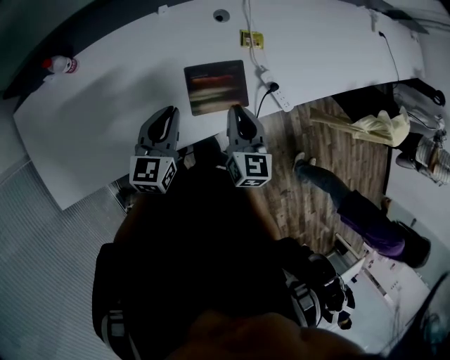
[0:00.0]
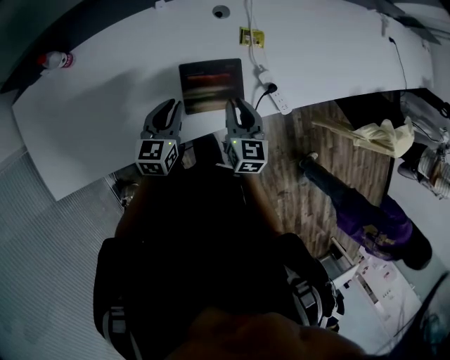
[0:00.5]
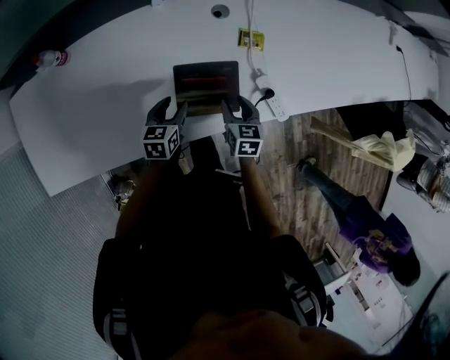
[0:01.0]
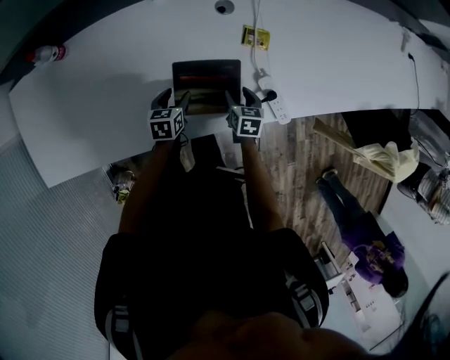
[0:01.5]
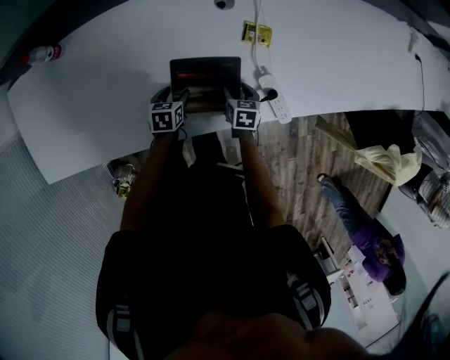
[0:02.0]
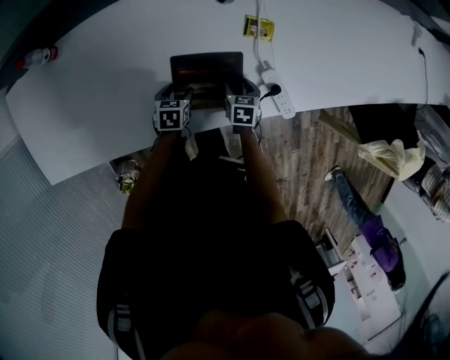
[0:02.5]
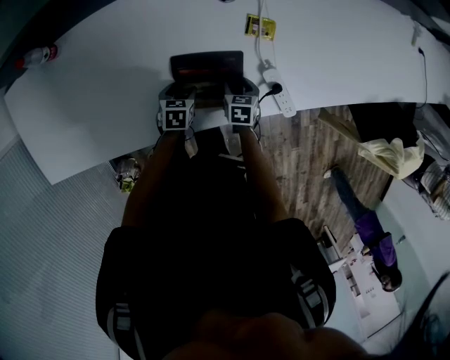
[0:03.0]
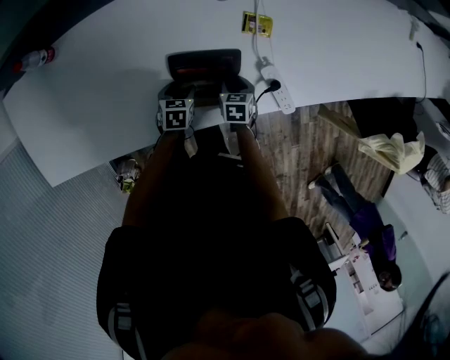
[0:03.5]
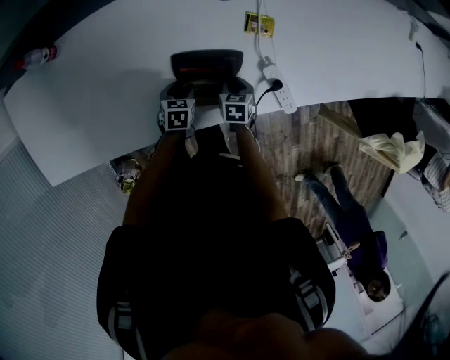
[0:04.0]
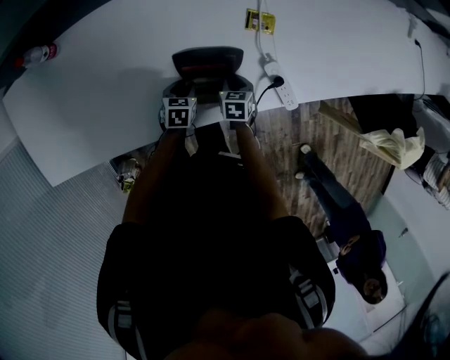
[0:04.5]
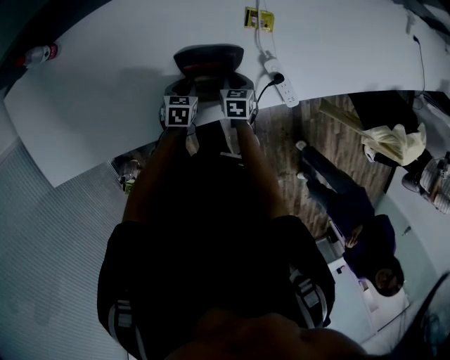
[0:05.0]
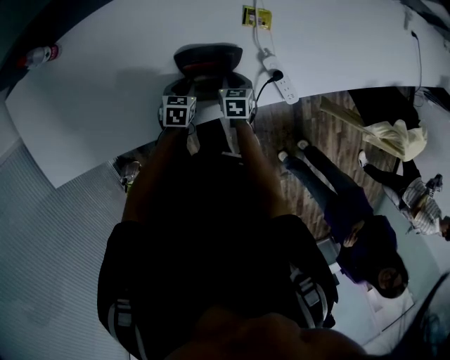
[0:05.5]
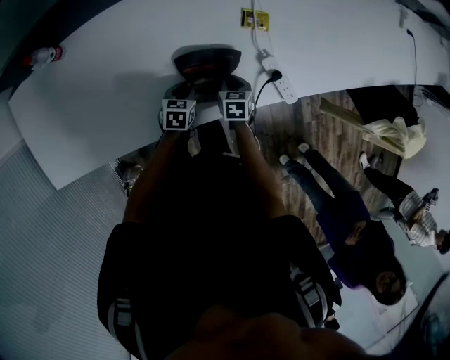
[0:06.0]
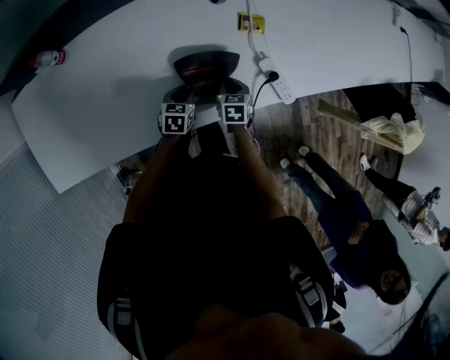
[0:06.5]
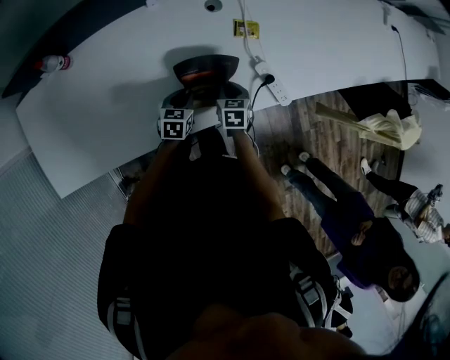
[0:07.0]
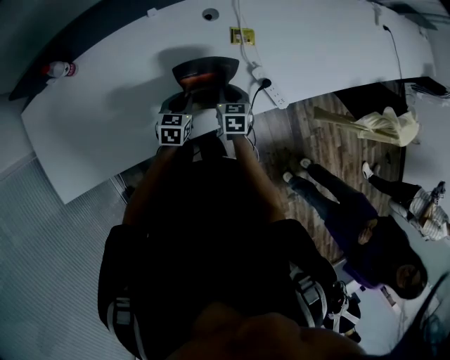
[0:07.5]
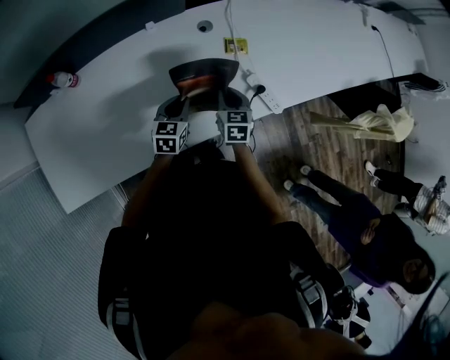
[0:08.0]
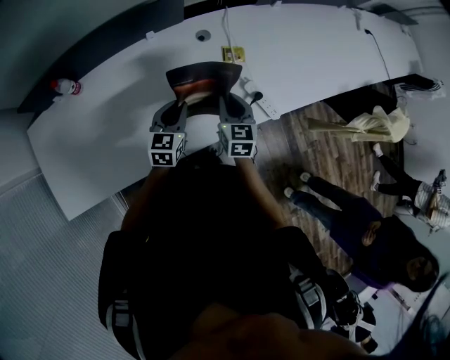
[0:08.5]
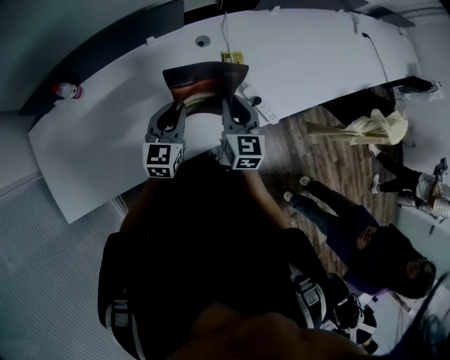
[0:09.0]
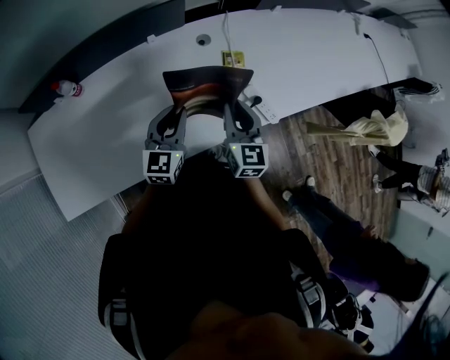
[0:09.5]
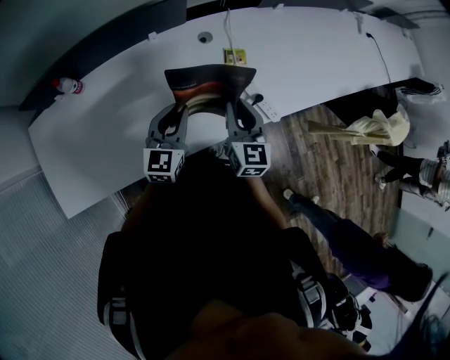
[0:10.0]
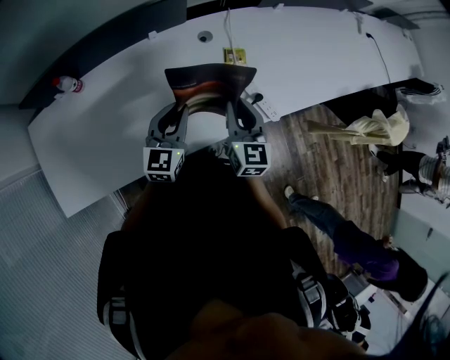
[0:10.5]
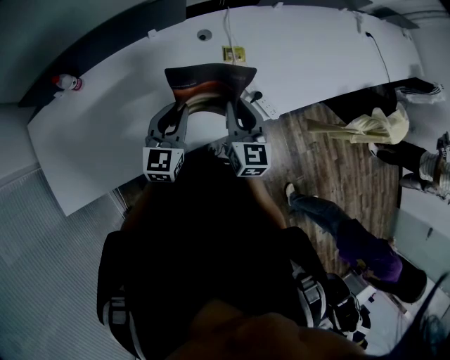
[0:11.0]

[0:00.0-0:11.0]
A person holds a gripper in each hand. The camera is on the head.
0:00.0 to 0:02.0: The two grippers go about 30 cm downward. The left gripper angles its fingers downward, by about 40 degrees, and opens, while the right gripper tips its fingers downward by some 40 degrees, and opens its fingers.
0:02.0 to 0:03.5: The grippers make only small movements.
0:03.5 to 0:05.5: The right gripper closes up. Meanwhile the left gripper closes.
0:05.5 to 0:07.5: The two grippers go approximately 10 cm upward.
0:07.5 to 0:09.0: Both grippers travel together upward, roughly 20 cm. The right gripper rotates approximately 30 degrees. Meanwhile the left gripper changes its angle by approximately 30 degrees.
0:09.0 to 0:11.0: The grippers move only a little.

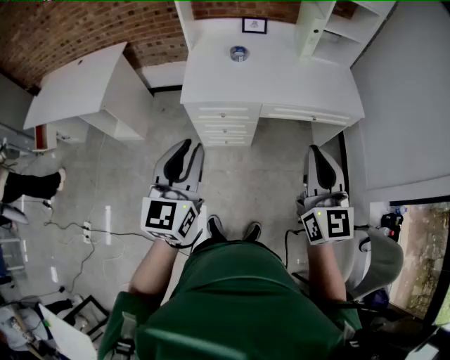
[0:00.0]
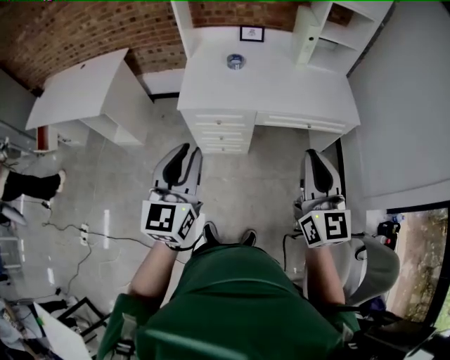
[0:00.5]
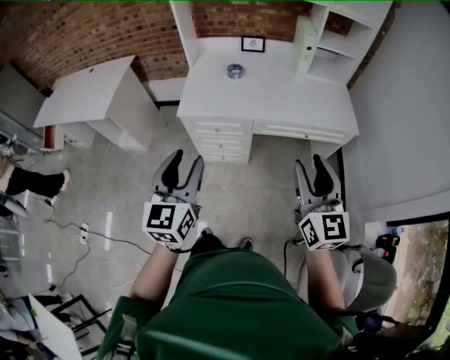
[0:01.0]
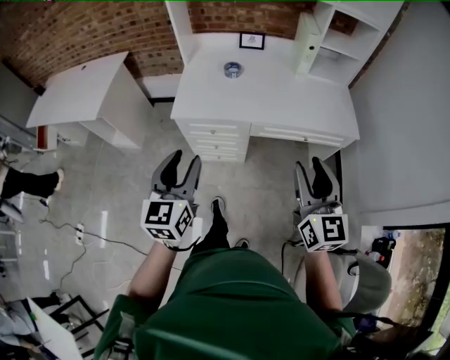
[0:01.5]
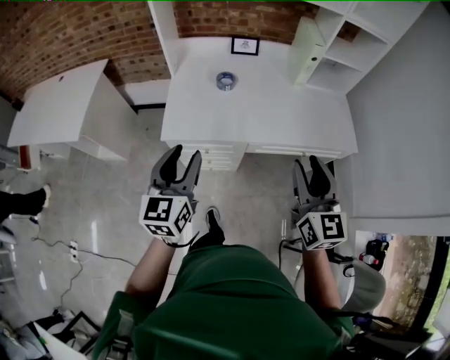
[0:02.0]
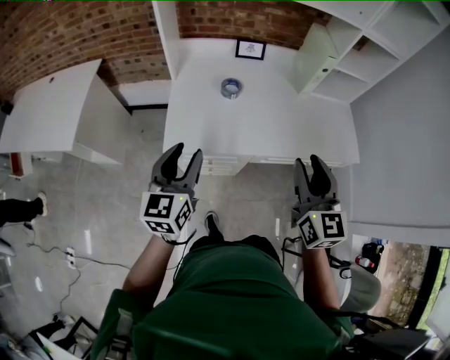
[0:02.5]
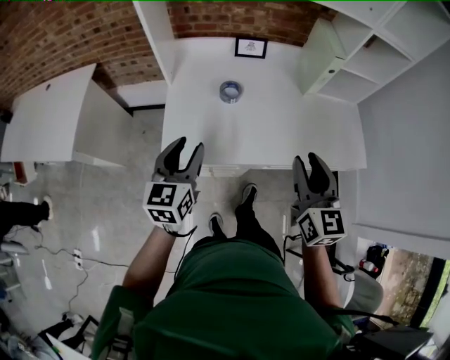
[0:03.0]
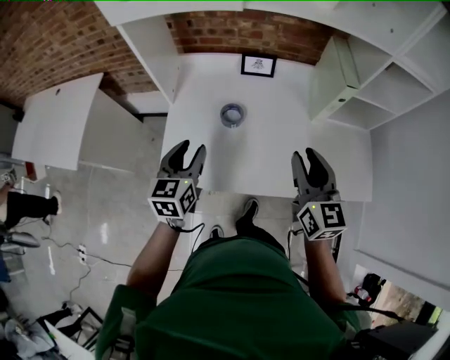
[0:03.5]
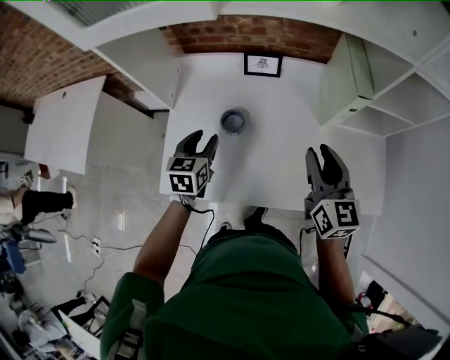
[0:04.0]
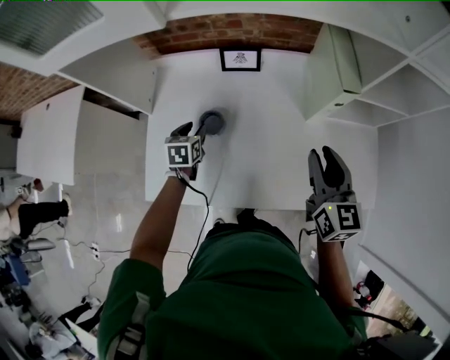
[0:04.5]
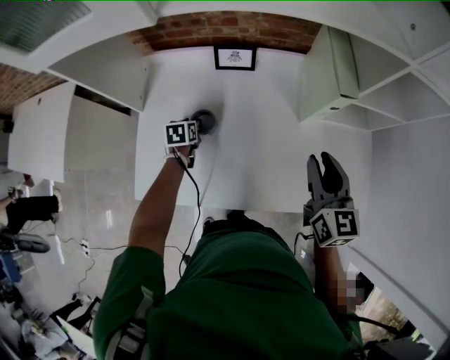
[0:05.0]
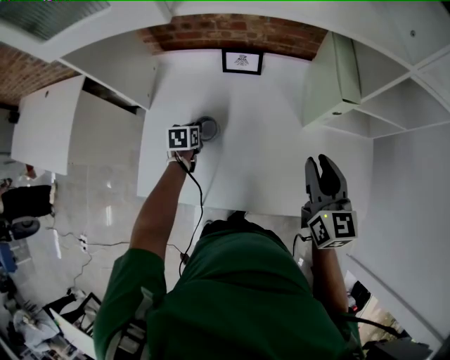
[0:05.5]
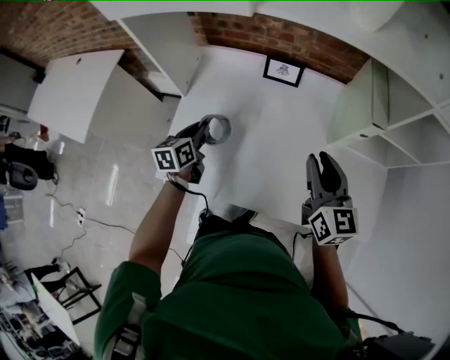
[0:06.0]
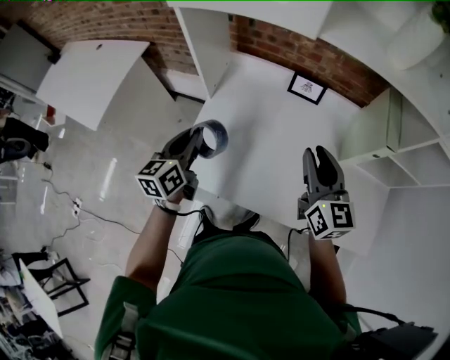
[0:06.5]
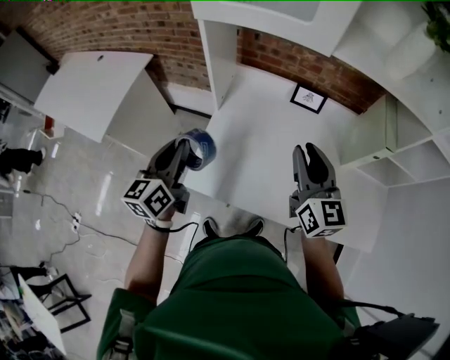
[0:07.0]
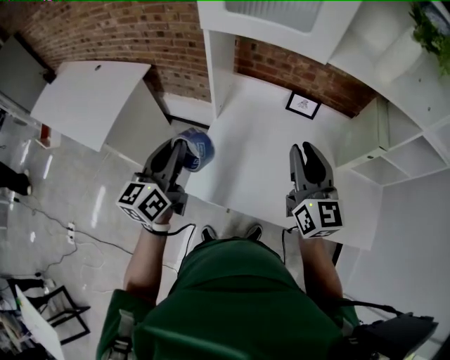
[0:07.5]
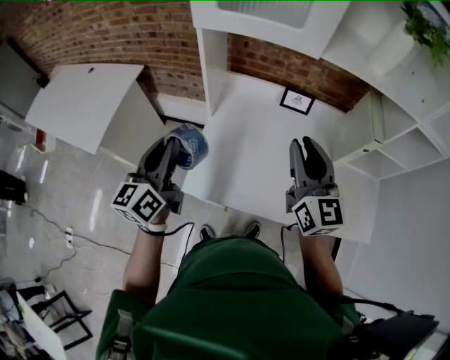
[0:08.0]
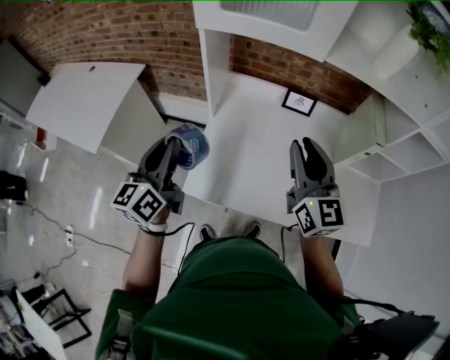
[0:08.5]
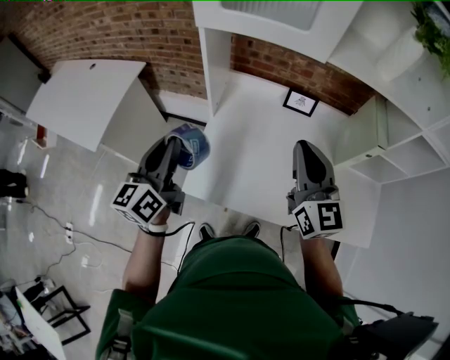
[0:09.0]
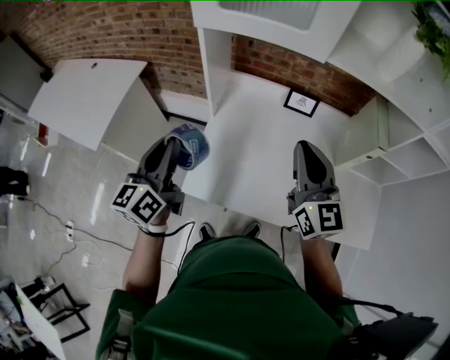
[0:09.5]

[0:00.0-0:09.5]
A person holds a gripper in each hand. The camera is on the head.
0:00.0 to 0:02.0: Both grippers move forward, some 20 cm. The right gripper opens its fingers; the left gripper opens its fingers.
0:02.0 to 0:04.0: The two grippers travel together, forward, some 40 cm. The left gripper shifts approximately 20 cm downward, and rotates some 30 degrees.
0:04.0 to 0:05.5: The left gripper shifts roughly 20 cm downward and forward, changes its angle by approximately 30 degrees, and closes. Meanwhile the right gripper heads to the right, covering approximately 5 cm.
0:05.5 to 0:07.5: The left gripper goes roughly 50 cm upward, to the left and backward, and points its fingers some 60 degrees further upward. The right gripper is displaced to the left and upward by roughly 35 cm, and swivels roughly 20 degrees.
0:07.5 to 0:09.5: There are only small adjustments of the grippers.

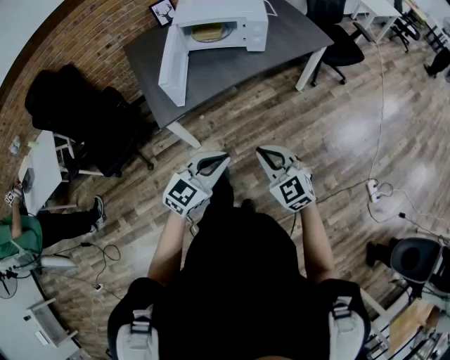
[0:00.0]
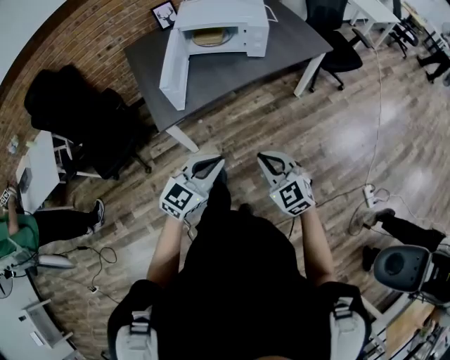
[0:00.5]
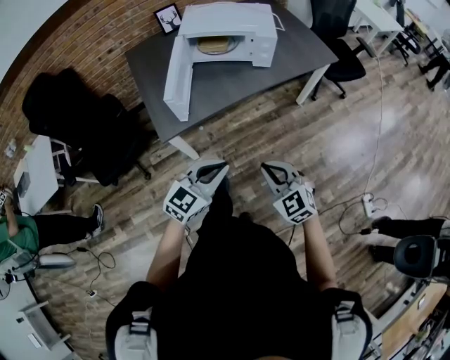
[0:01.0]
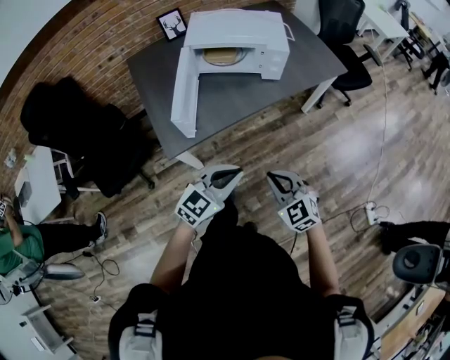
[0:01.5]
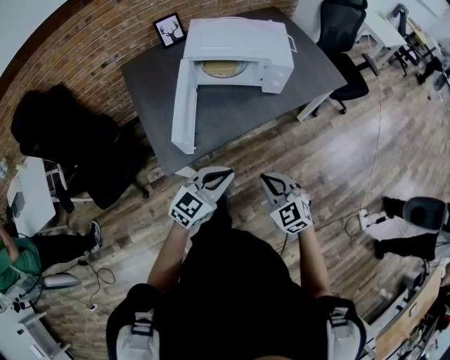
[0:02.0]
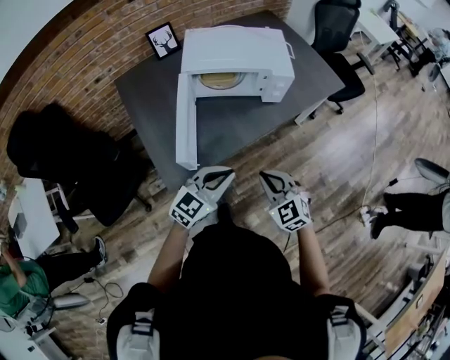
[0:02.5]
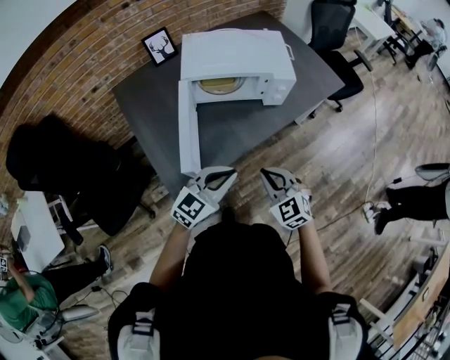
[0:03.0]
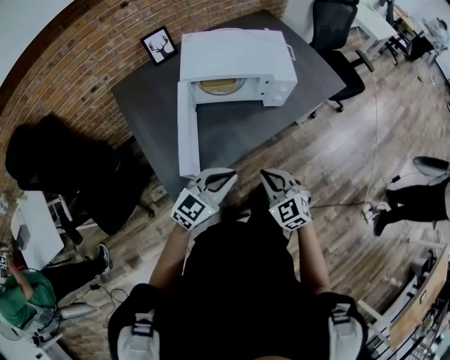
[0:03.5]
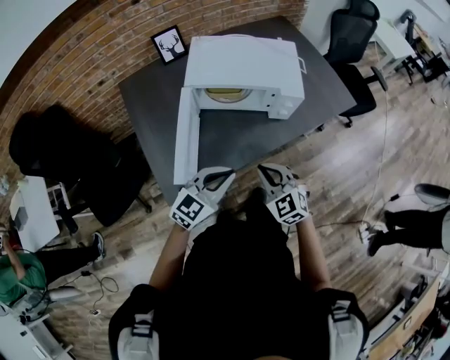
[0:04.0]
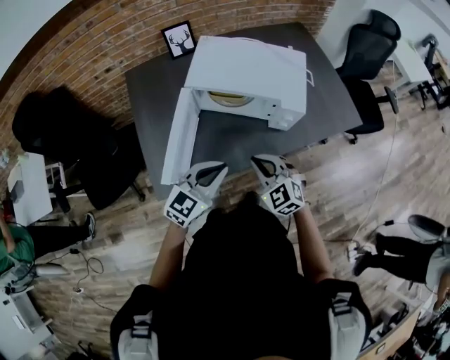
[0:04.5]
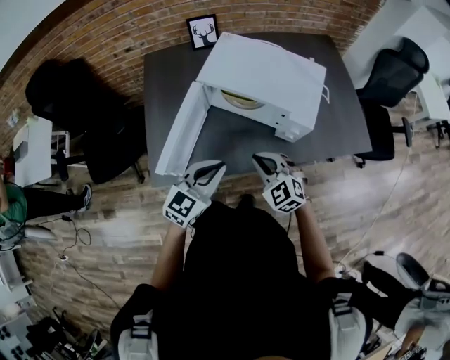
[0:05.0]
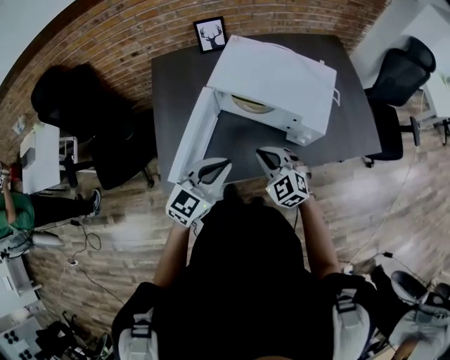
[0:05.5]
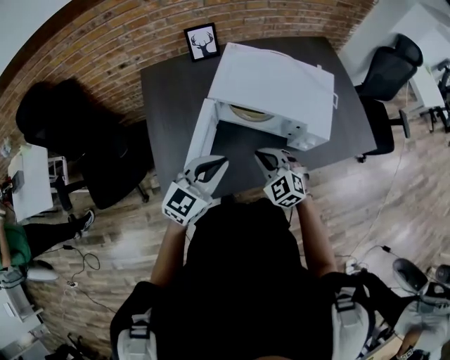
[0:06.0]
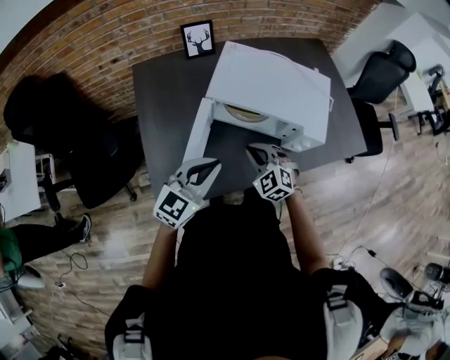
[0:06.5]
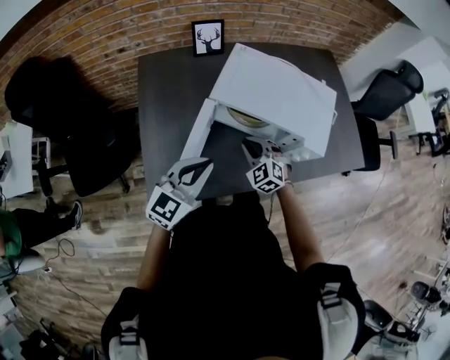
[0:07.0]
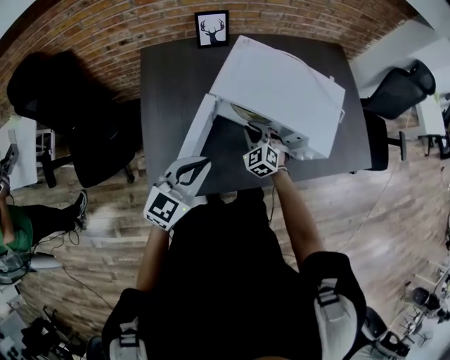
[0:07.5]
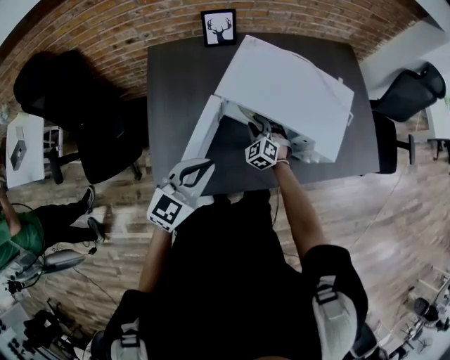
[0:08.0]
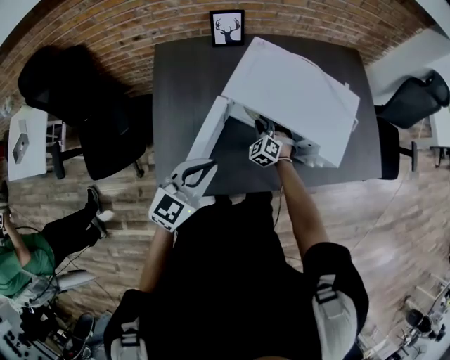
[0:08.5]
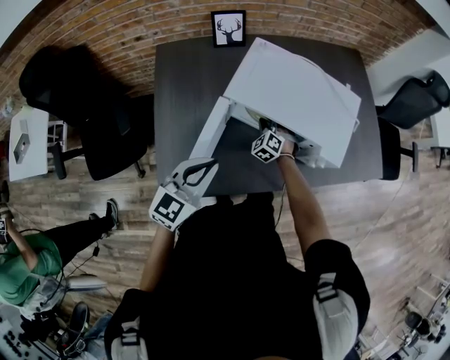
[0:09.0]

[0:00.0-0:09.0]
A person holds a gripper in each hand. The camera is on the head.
0:00.0 to 0:02.0: The two grippers go some 20 cm forward and to the left.
0:02.0 to 0:04.5: Both grippers travel together forward, approximately 20 cm.
0:04.5 to 0:07.0: The right gripper travels forward, downward and to the left by approximately 20 cm. The left gripper moves to the left and forward, approximately 15 cm.
0:07.0 to 0:09.0: The right gripper goes some 15 cm forward and downward.
